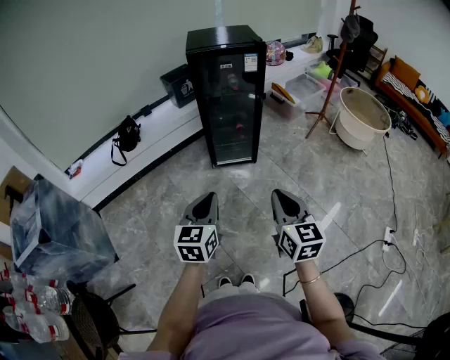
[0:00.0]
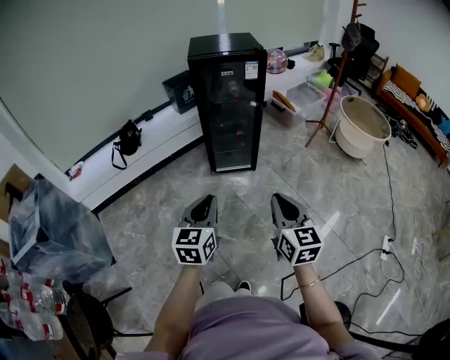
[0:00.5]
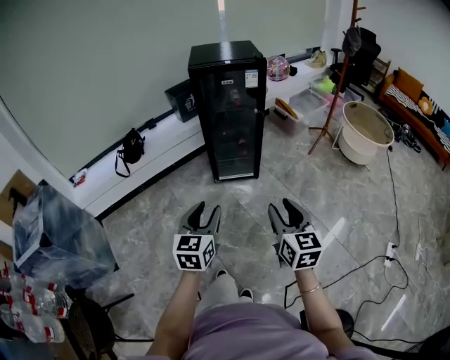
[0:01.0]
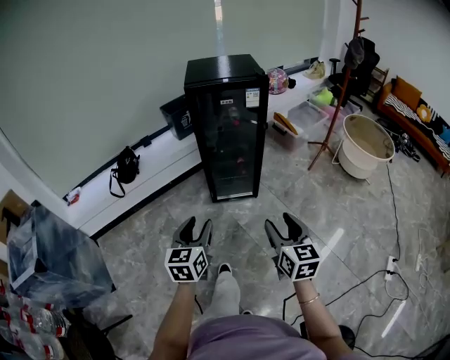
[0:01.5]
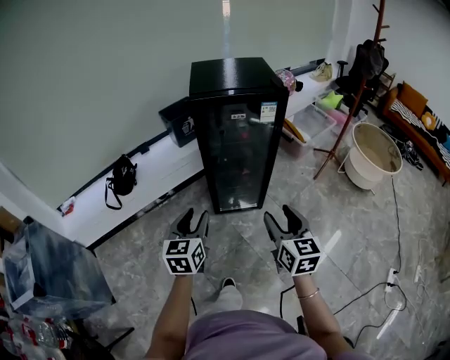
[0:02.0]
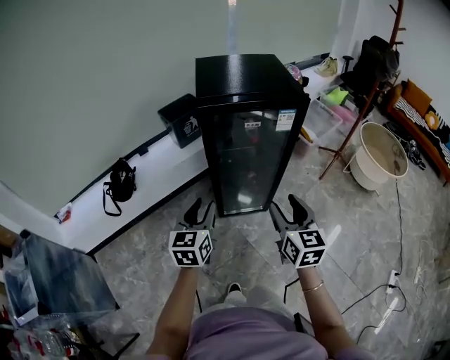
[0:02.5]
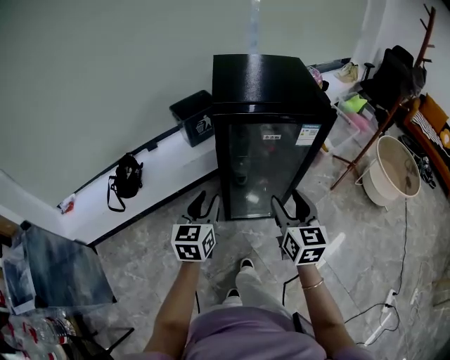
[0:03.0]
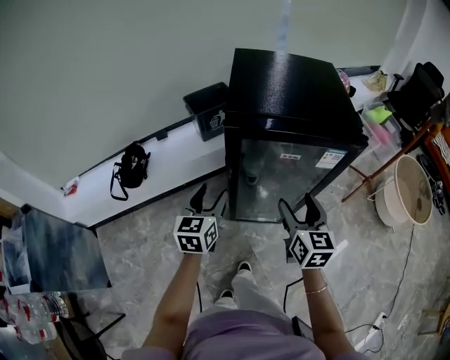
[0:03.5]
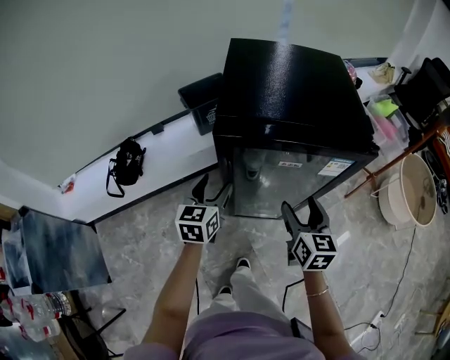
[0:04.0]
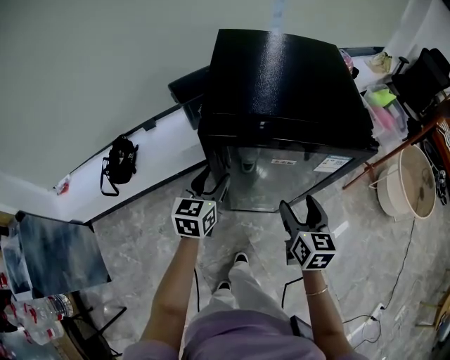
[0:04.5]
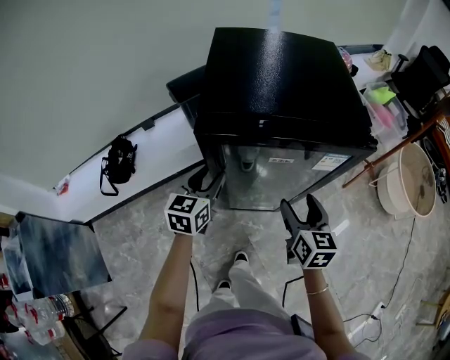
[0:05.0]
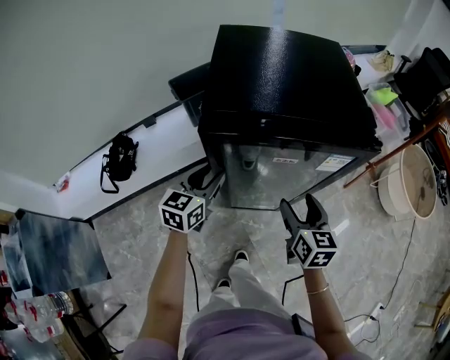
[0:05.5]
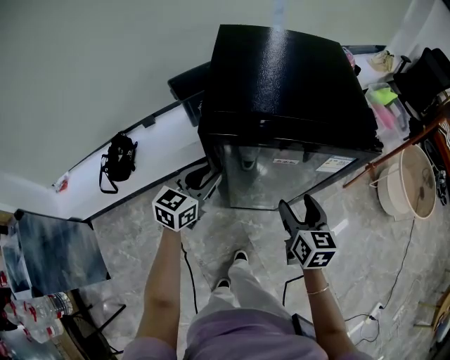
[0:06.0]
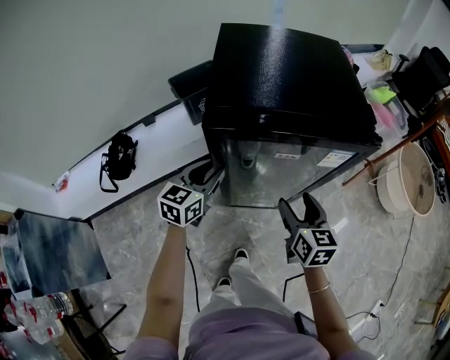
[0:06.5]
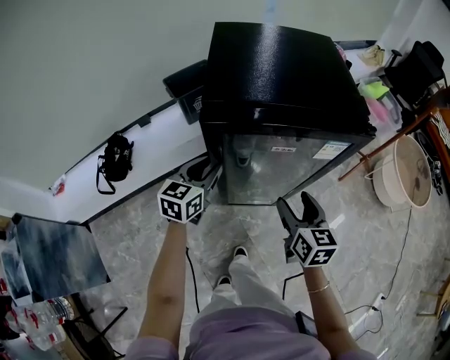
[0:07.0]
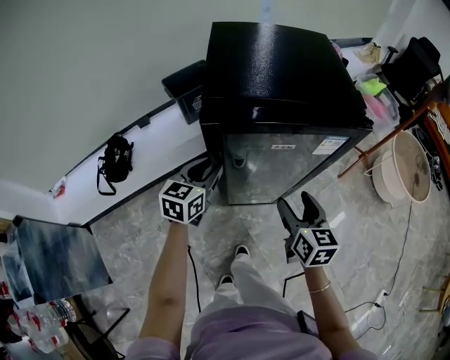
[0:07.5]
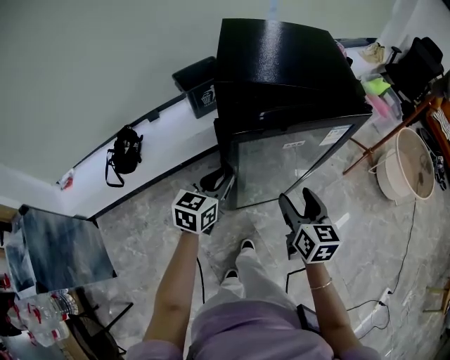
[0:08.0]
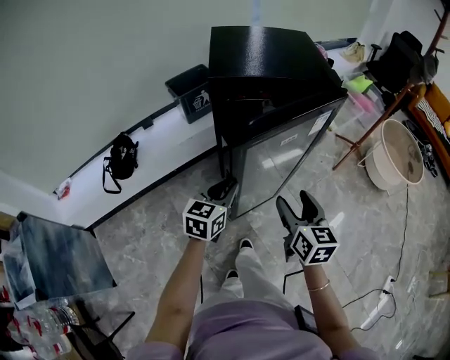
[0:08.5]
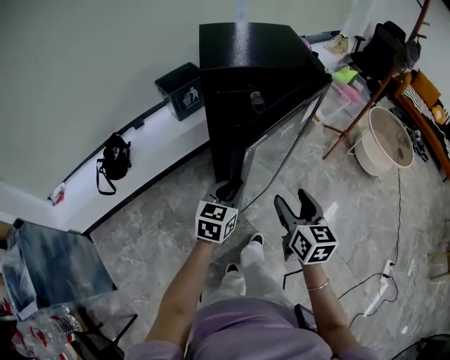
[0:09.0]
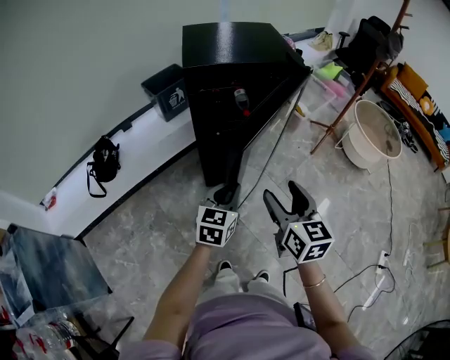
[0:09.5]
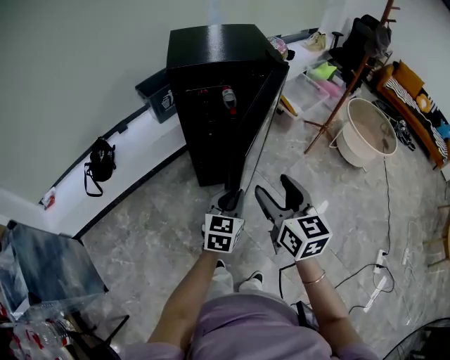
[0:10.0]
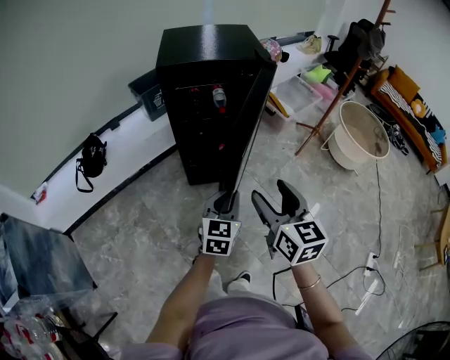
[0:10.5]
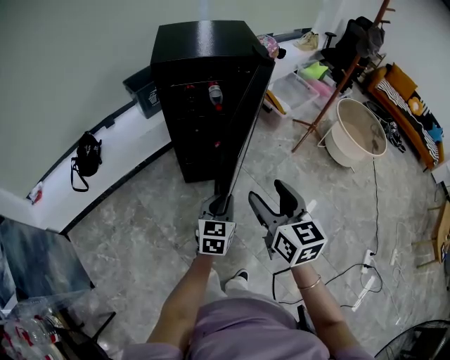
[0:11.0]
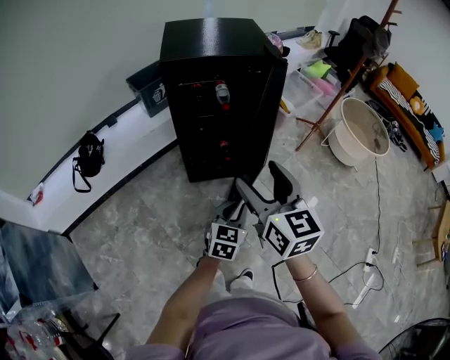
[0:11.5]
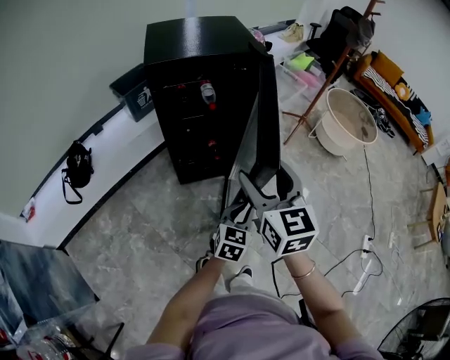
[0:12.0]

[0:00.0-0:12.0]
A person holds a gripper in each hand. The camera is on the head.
0:00.0 to 0:02.0: Both grippers move forward, roughly 25 cm. The right gripper opens, while the left gripper opens.
0:02.0 to 0:04.0: Both grippers travel together forward, about 35 cm. The left gripper opens.
0:04.0 to 0:06.0: The left gripper changes its angle by approximately 20 degrees, and closes.
0:06.0 to 0:08.0: The two grippers go roughly 10 cm backward.
0:08.0 to 0:10.0: The left gripper travels to the right and backward by about 25 cm, while the right gripper is displaced backward and upward by about 20 cm.
0:10.0 to 0:12.0: The left gripper travels to the right and downward by approximately 10 cm.

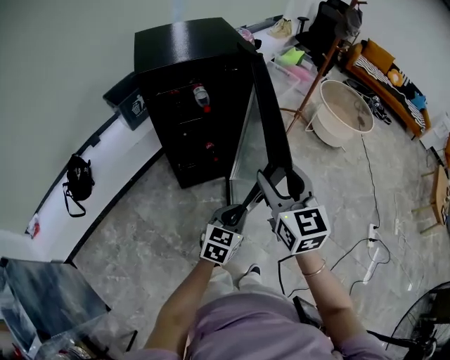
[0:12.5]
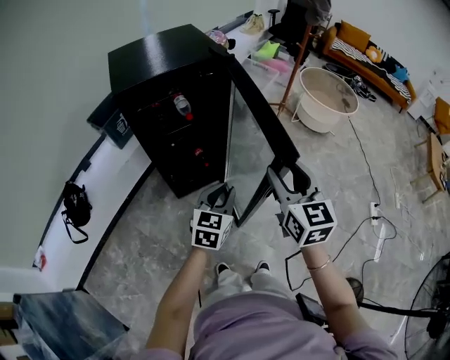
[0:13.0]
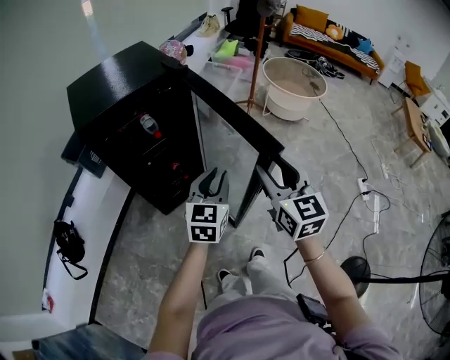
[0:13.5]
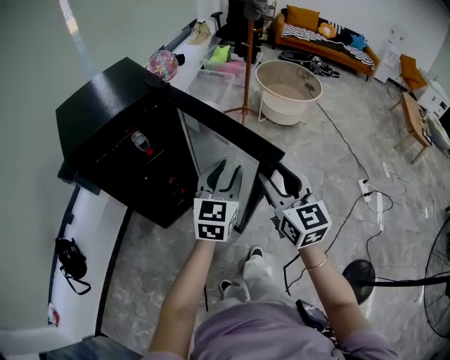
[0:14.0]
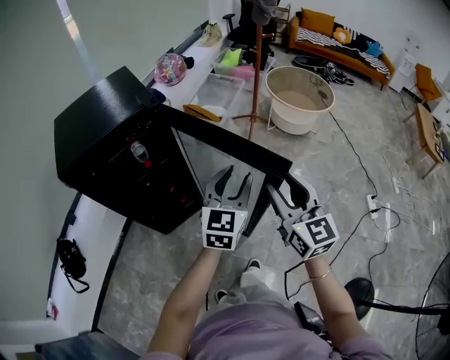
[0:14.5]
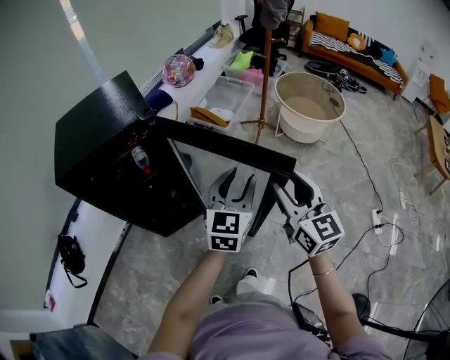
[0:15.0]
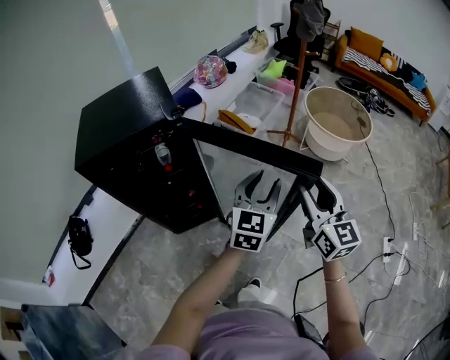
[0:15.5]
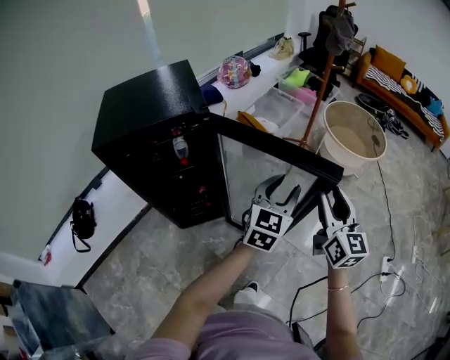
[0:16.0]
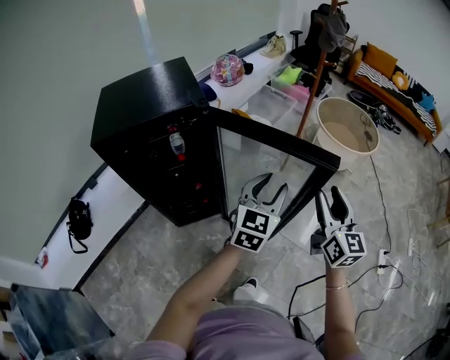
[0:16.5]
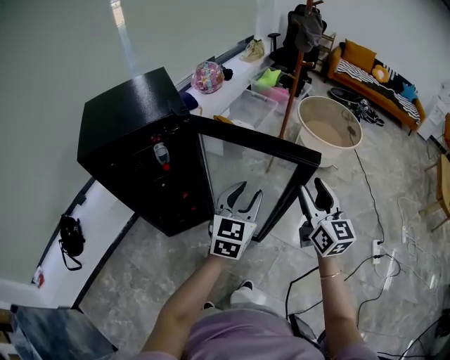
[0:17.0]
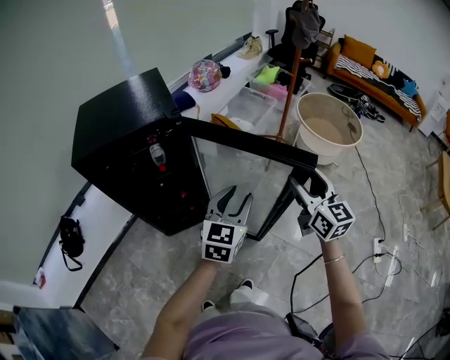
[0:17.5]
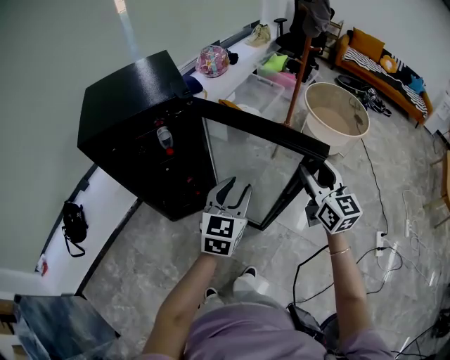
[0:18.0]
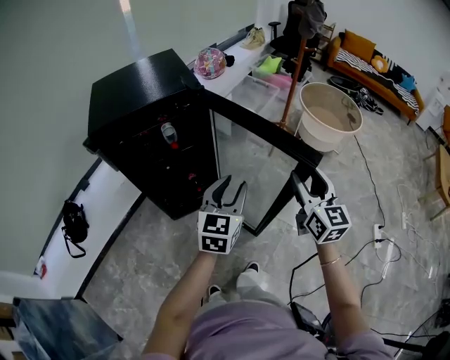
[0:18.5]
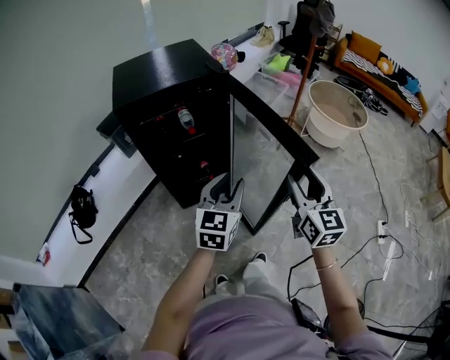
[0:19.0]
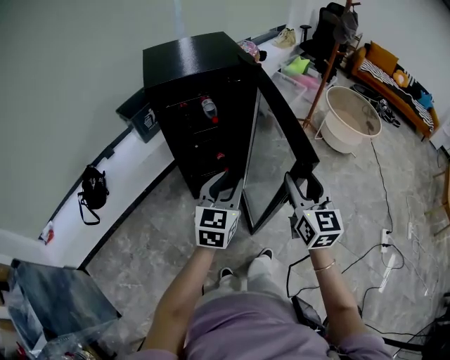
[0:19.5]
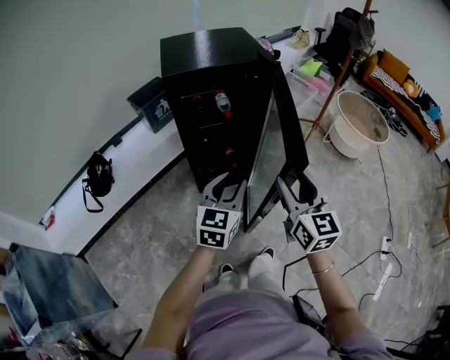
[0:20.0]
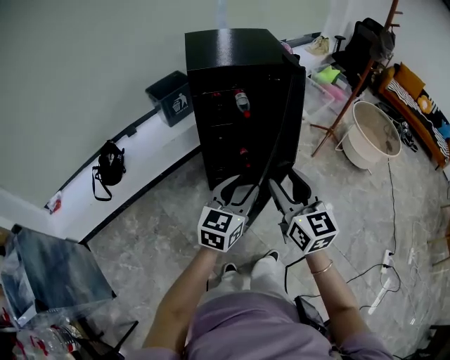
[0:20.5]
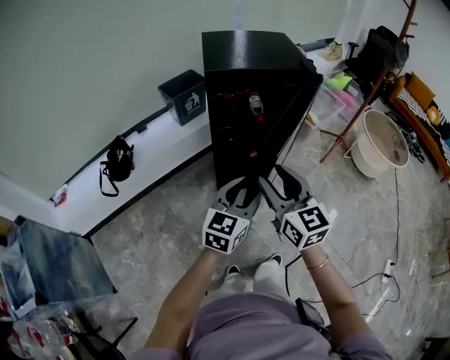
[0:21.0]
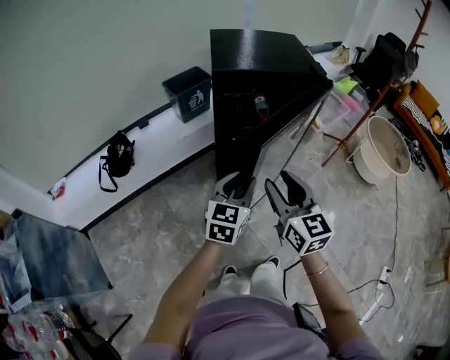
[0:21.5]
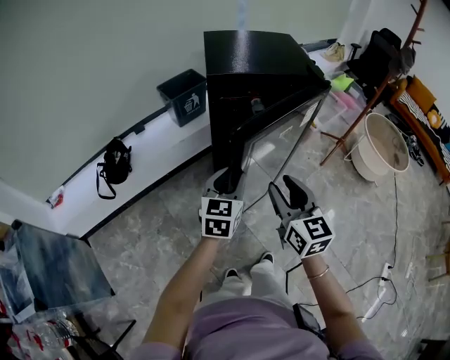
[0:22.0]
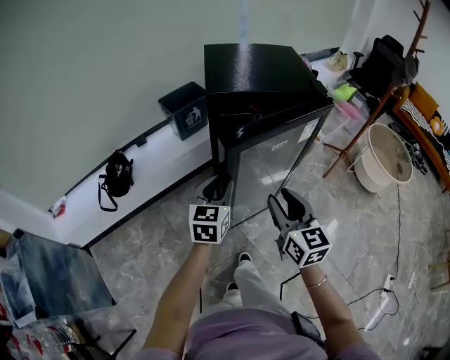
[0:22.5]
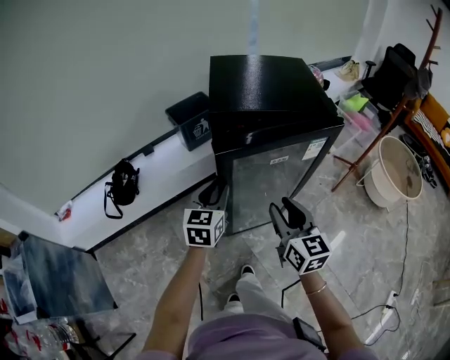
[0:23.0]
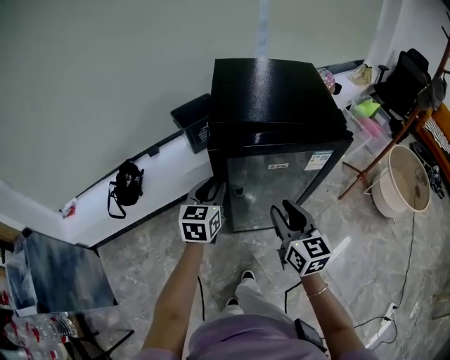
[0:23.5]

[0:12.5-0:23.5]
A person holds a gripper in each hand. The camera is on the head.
0:12.5 to 0:14.5: The left gripper is displaced forward, upward and to the right by roughly 30 cm, changes its angle by some 20 degrees, and opens up. The right gripper shifts approximately 25 cm to the right and forward.
0:14.5 to 0:16.0: Both grippers travel together forward and to the right, roughly 10 cm.
0:16.0 to 0:18.0: The left gripper goes some 10 cm to the left and backward.
0:18.0 to 0:20.0: The grippers both shift to the left and backward by roughly 30 cm.
0:20.0 to 0:21.5: The right gripper heads to the left, covering roughly 15 cm. Meanwhile the left gripper goes roughly 10 cm to the left.
0:21.5 to 0:23.5: Both grippers travel together forward, some 15 cm.

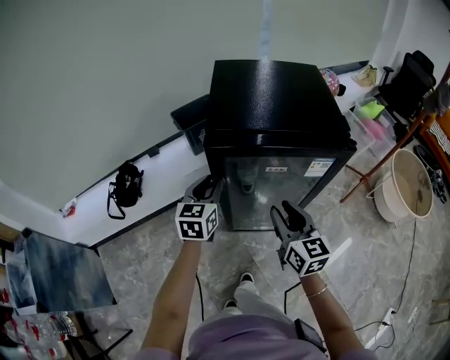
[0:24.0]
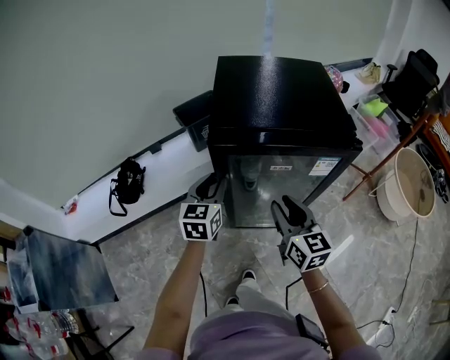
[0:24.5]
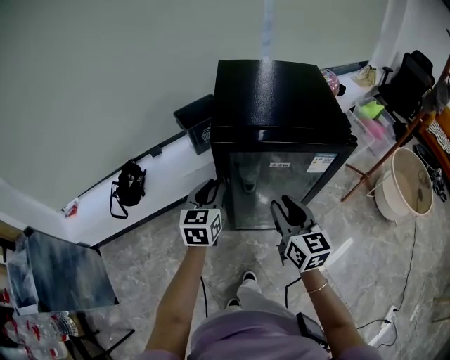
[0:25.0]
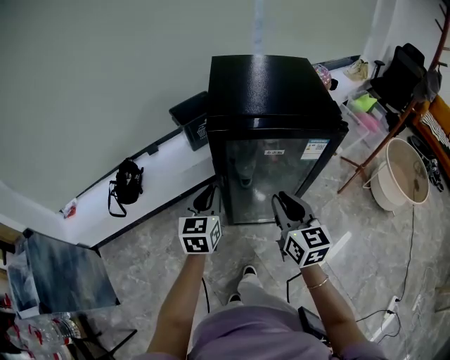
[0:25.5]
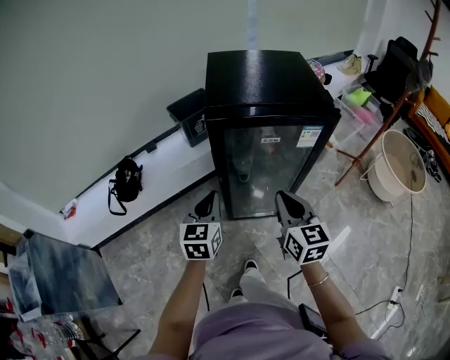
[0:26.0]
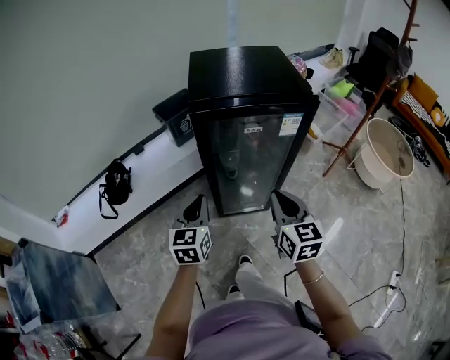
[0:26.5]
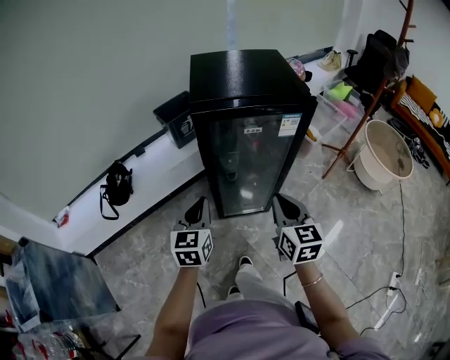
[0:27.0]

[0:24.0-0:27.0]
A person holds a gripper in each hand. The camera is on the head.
0:24.0 to 0:25.5: The left gripper heads backward, covering some 10 cm.
0:25.5 to 0:27.0: The two grippers go roughly 10 cm backward.

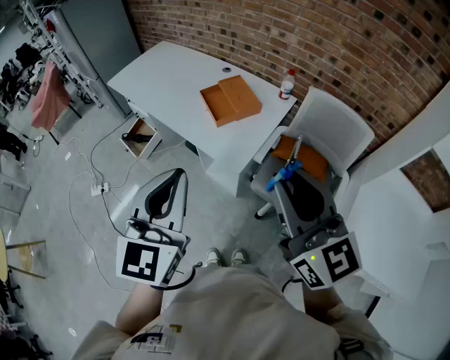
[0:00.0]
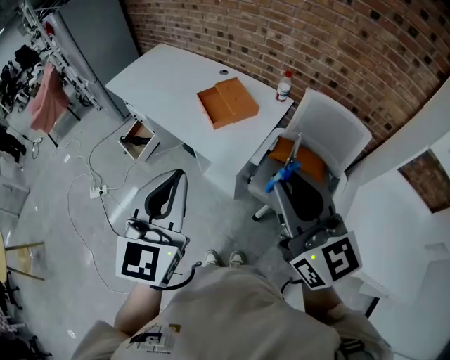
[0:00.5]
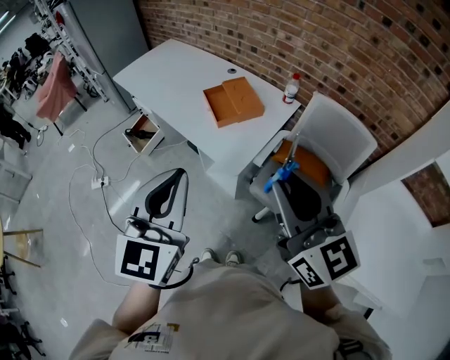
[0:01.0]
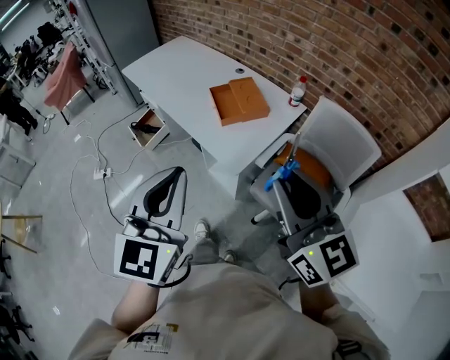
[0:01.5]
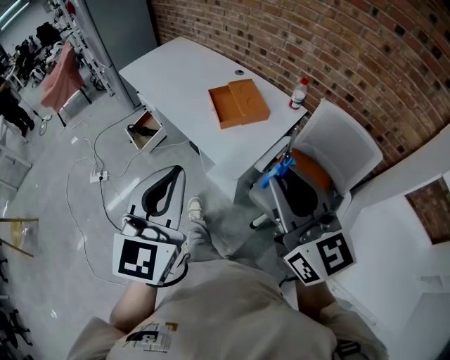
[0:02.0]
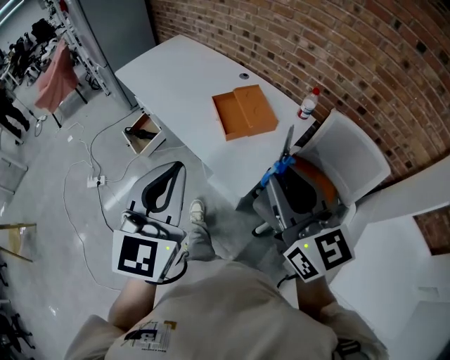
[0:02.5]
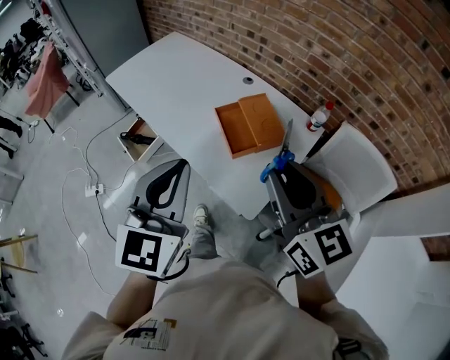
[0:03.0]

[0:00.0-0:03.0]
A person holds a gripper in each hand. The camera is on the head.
0:00.0 to 0:01.5: There are only small adjustments of the grippers.
0:01.5 to 0:03.0: The two grippers go approximately 25 cm forward.
